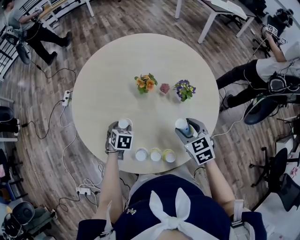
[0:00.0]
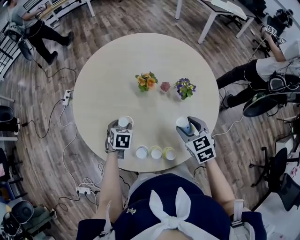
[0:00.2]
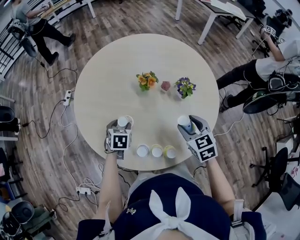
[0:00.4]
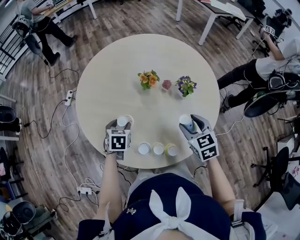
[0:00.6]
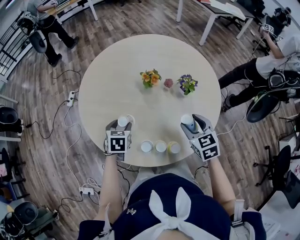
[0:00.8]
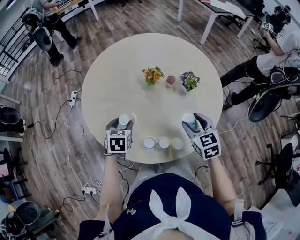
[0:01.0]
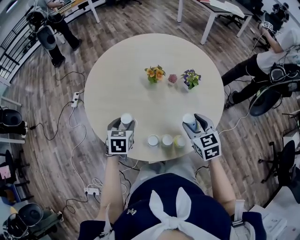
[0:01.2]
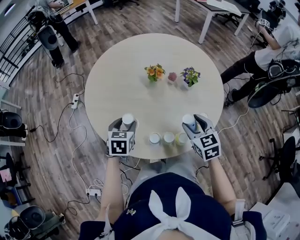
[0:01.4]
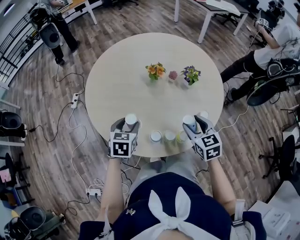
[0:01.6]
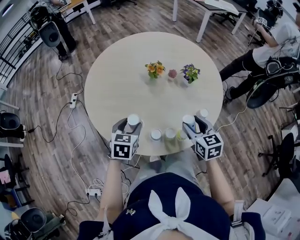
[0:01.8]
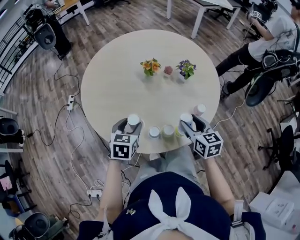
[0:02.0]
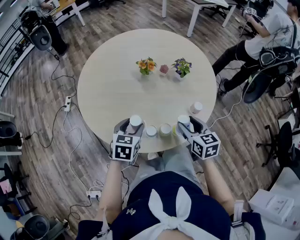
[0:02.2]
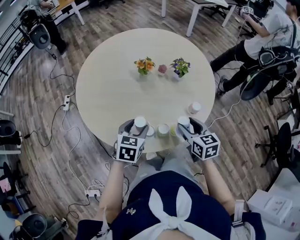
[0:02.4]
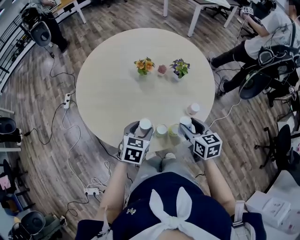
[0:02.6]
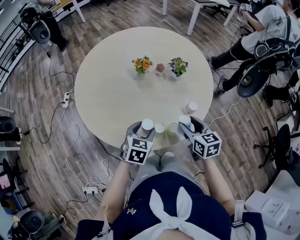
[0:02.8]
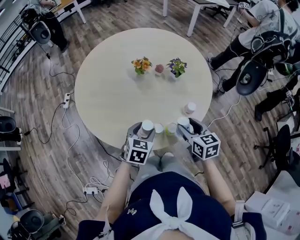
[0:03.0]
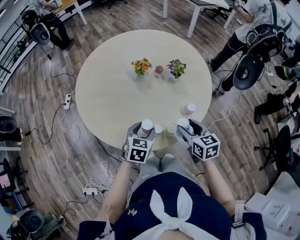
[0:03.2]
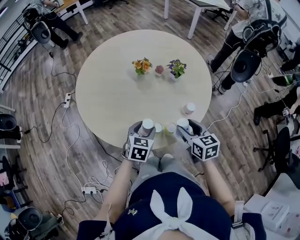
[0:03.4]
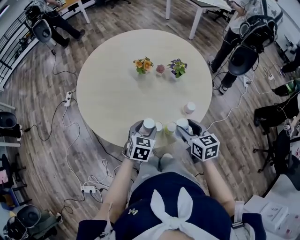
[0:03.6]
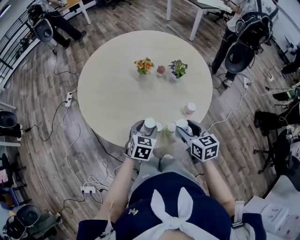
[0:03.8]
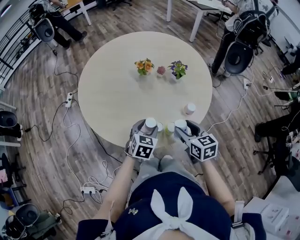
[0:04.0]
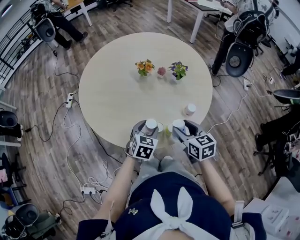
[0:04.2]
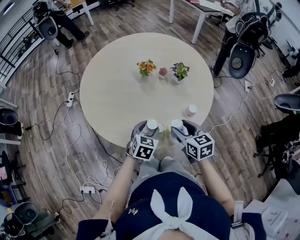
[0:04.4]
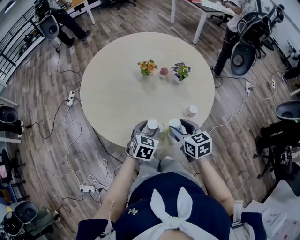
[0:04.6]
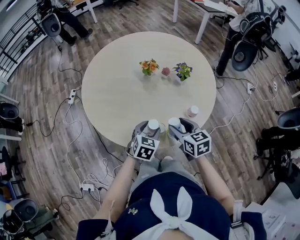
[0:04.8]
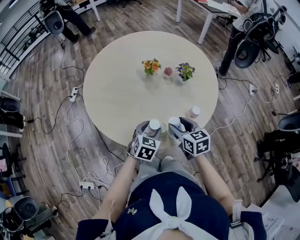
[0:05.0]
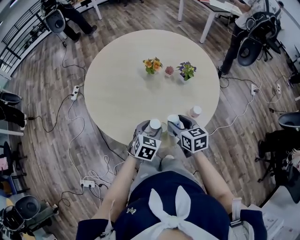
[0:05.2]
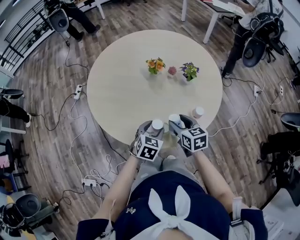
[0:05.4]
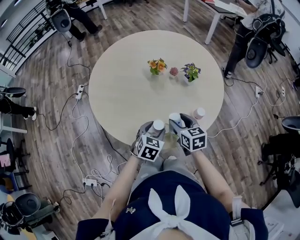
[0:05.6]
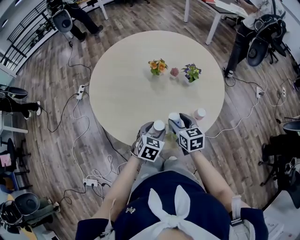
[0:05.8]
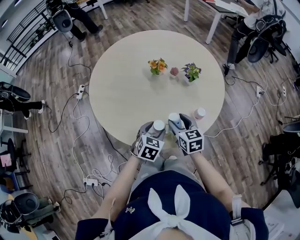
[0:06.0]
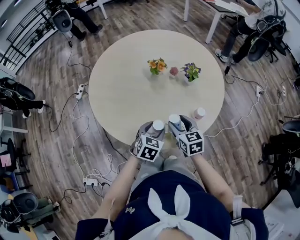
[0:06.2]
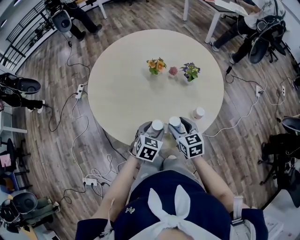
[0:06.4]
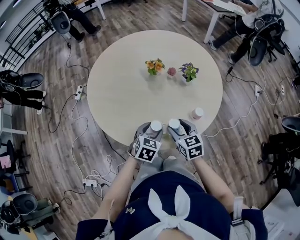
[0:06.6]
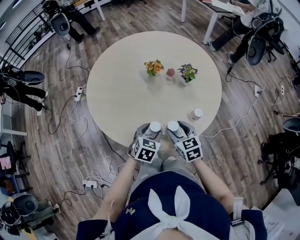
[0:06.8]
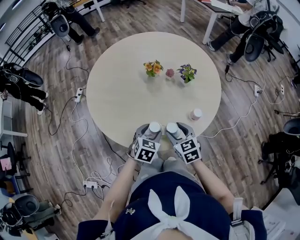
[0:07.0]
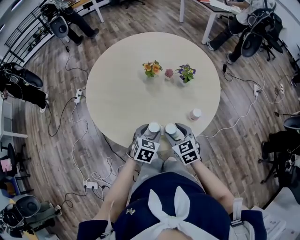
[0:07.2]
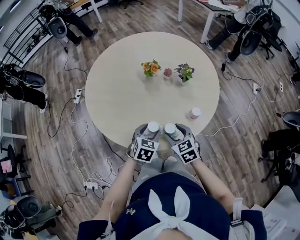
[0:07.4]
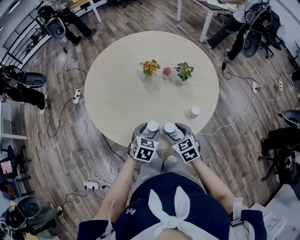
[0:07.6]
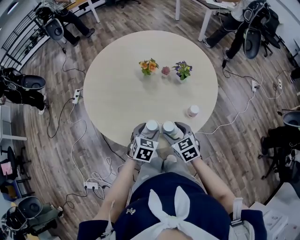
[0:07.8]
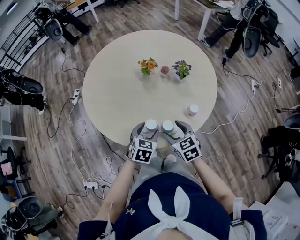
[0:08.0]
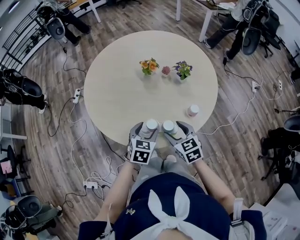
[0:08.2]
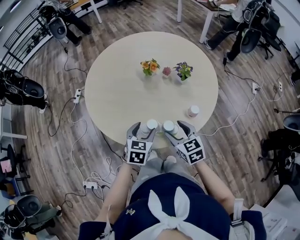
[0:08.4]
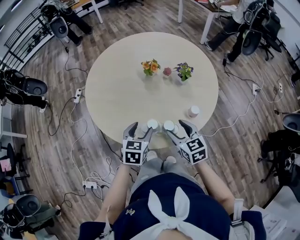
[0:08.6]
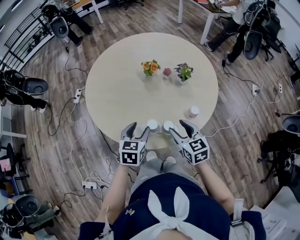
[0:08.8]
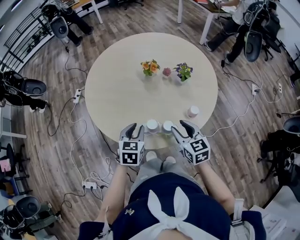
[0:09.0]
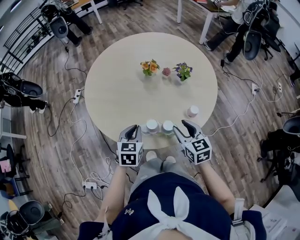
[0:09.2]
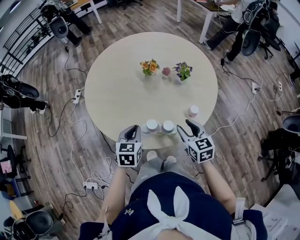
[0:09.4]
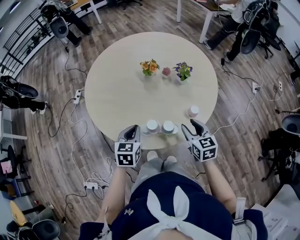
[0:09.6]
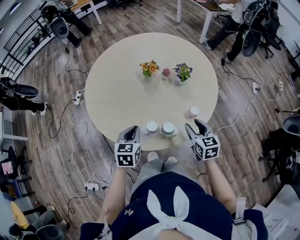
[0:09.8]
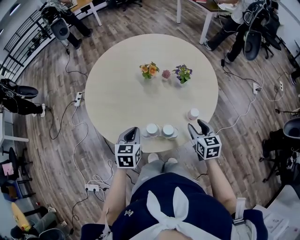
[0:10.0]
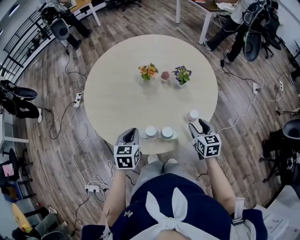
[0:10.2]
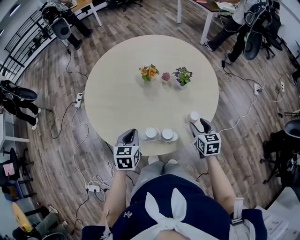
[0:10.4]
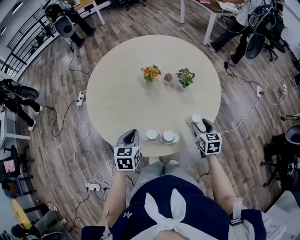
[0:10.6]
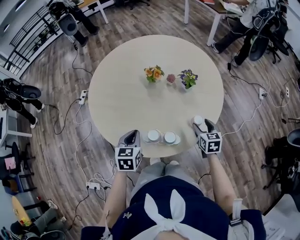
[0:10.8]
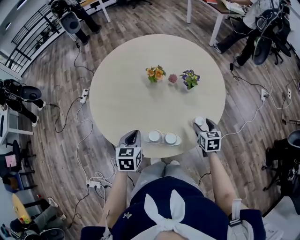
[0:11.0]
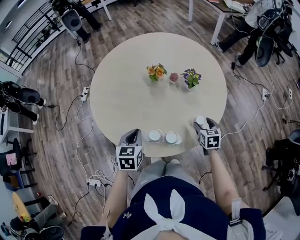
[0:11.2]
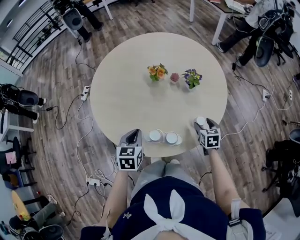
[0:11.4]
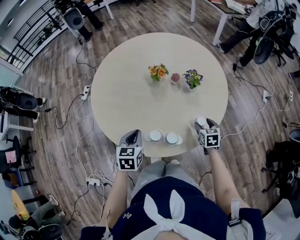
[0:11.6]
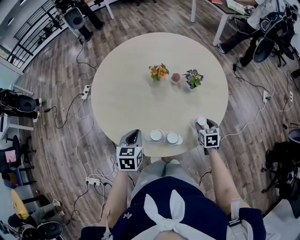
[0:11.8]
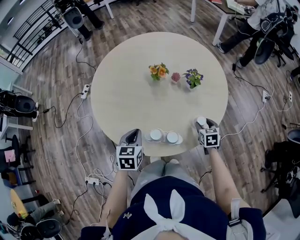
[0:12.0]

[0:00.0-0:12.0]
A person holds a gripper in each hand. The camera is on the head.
0:00.0 to 0:01.6: The left gripper shifts about 15 cm upward and backward; the right gripper is displaced backward by some 10 cm.
0:01.6 to 0:03.0: The right gripper changes place by about 5 cm. The left gripper moves to the right and backward, some 15 cm.
0:03.0 to 0:04.4: The grippers move only a little.
0:04.4 to 0:06.0: The right gripper heads forward, covering approximately 5 cm.
0:06.0 to 0:07.6: The right gripper heads backward, covering roughly 5 cm.
0:07.6 to 0:09.0: The right gripper is displaced upward by some 5 cm. The left gripper moves upward and to the left, roughly 10 cm, and closes.
0:09.0 to 0:10.4: The right gripper is displaced to the right and downward by about 15 cm.
0:10.4 to 0:12.0: The right gripper shifts approximately 10 cm downward.

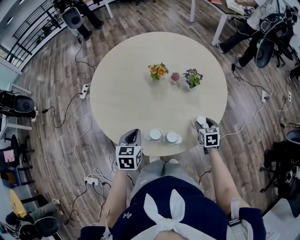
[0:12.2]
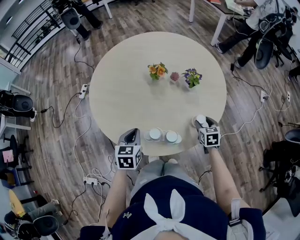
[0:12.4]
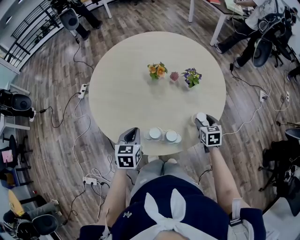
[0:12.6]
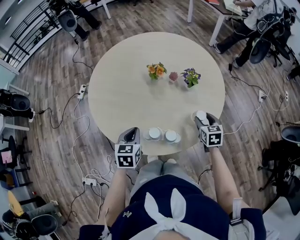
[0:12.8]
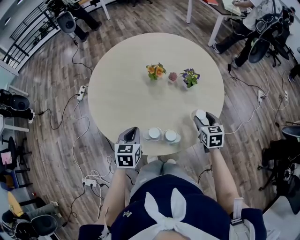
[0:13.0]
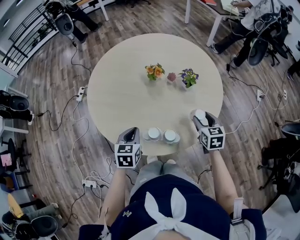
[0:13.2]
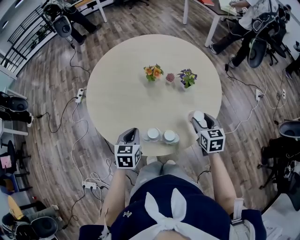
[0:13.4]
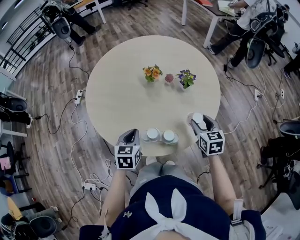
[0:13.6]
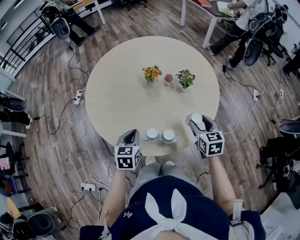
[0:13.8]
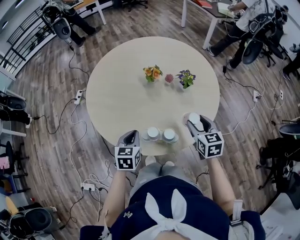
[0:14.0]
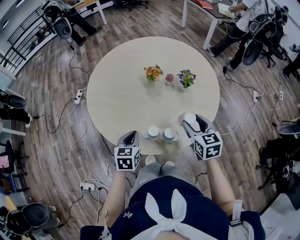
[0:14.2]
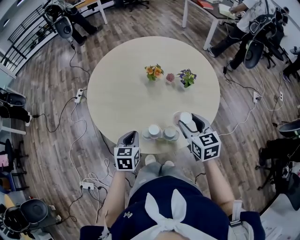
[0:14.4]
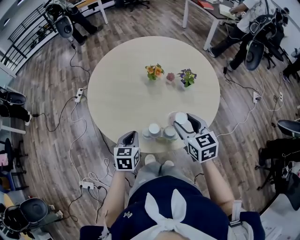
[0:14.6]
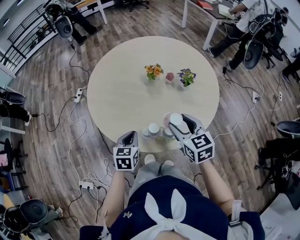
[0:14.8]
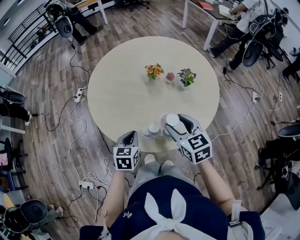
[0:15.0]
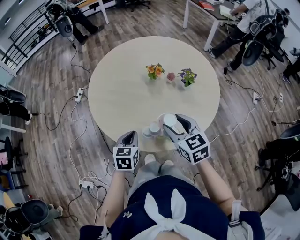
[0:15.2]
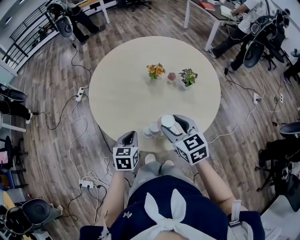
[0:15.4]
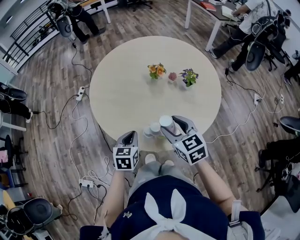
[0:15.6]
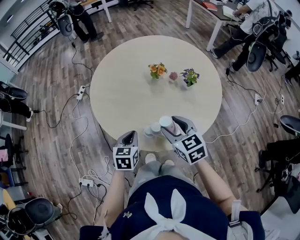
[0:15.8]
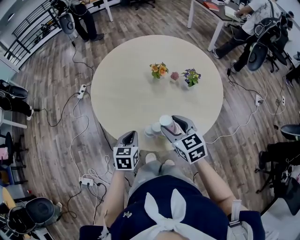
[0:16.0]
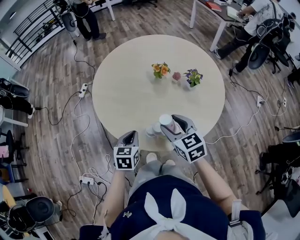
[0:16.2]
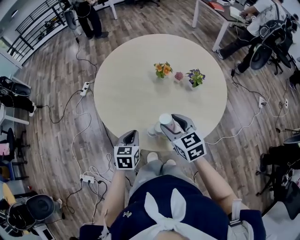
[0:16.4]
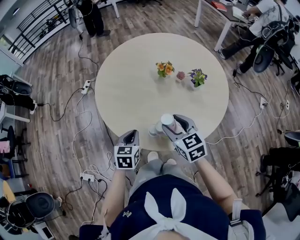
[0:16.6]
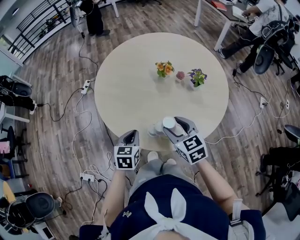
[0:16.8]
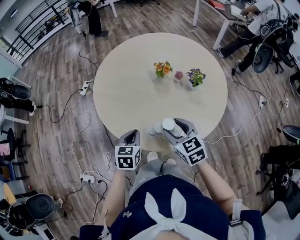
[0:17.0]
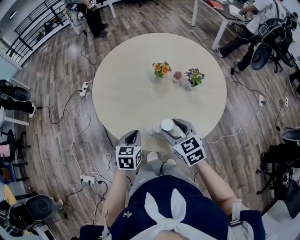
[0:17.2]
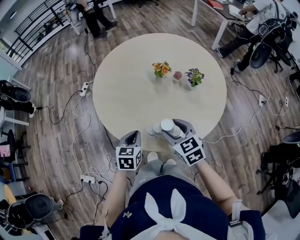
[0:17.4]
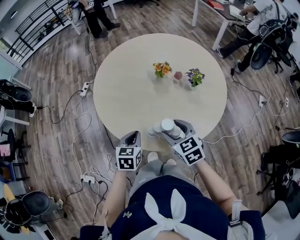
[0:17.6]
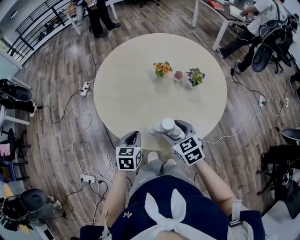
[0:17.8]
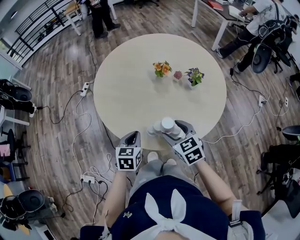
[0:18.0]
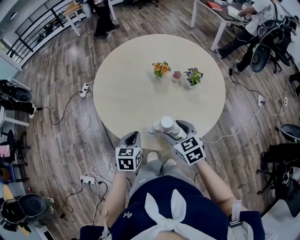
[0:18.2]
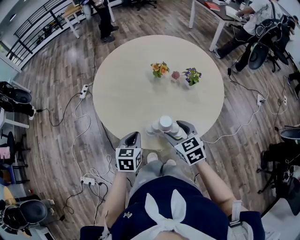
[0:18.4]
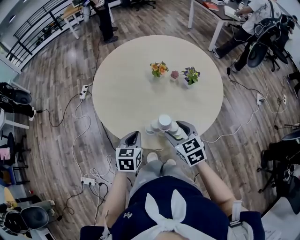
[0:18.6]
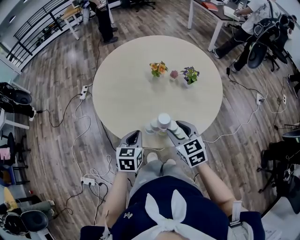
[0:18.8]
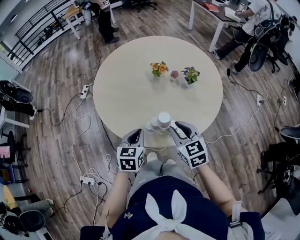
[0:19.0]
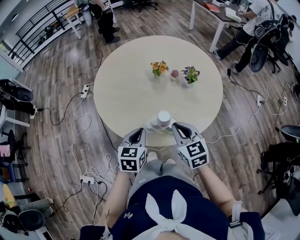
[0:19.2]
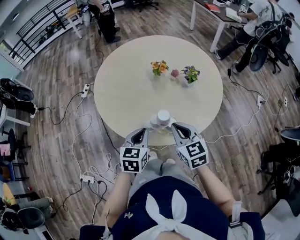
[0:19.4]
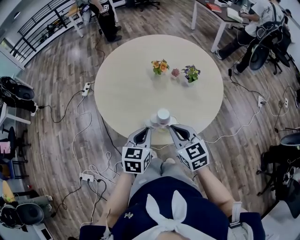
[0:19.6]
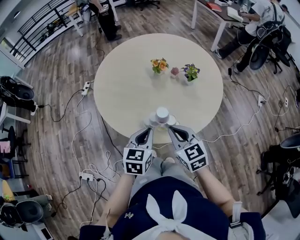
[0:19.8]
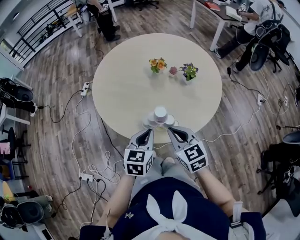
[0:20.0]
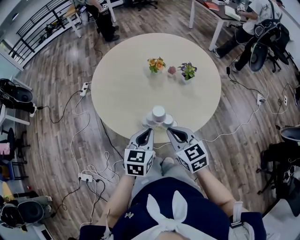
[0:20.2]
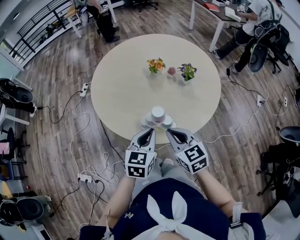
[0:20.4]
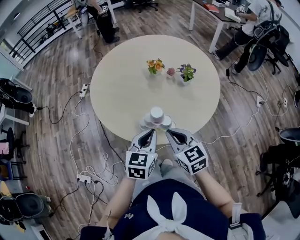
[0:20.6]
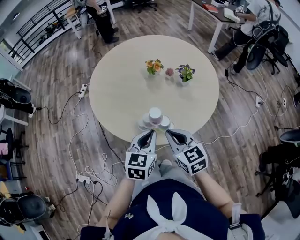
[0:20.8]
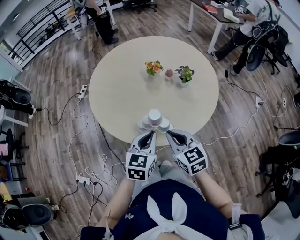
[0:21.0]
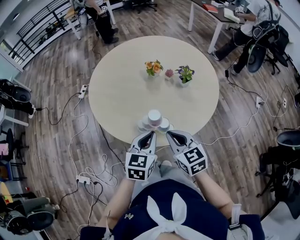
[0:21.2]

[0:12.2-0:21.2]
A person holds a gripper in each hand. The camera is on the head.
0:12.2 to 0:13.8: The right gripper goes approximately 15 cm upward.
0:13.8 to 0:15.2: The right gripper travels to the left and upward by approximately 15 cm, and changes its angle by roughly 20 degrees.
0:15.2 to 0:16.6: The grippers make only small movements.
0:16.6 to 0:18.2: There are only small adjustments of the grippers.
0:18.2 to 0:19.8: The left gripper goes roughly 10 cm to the right, upward and backward. Meanwhile the right gripper moves backward, approximately 5 cm, and closes.
0:19.8 to 0:21.2: The grippers stay close to where they were, moving slightly.

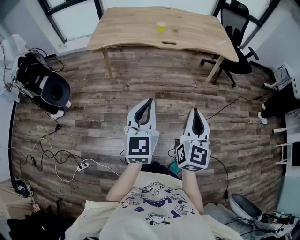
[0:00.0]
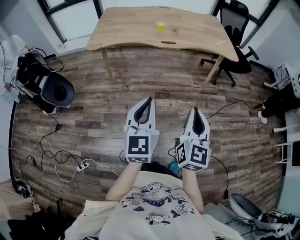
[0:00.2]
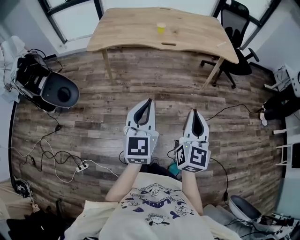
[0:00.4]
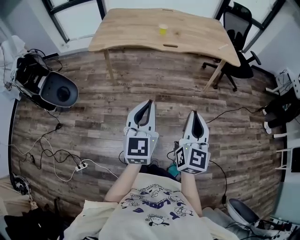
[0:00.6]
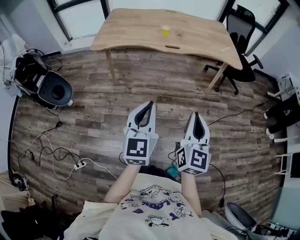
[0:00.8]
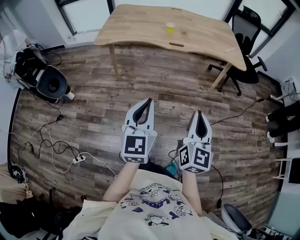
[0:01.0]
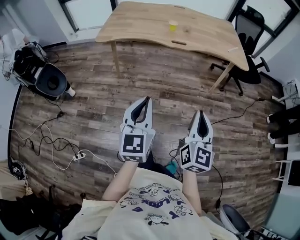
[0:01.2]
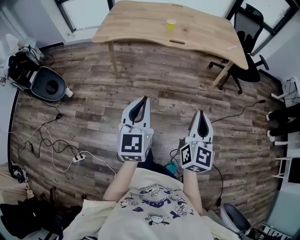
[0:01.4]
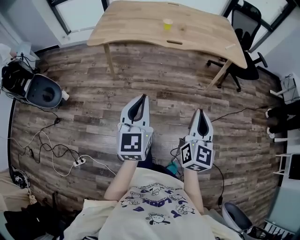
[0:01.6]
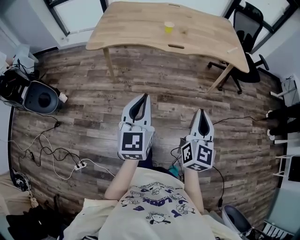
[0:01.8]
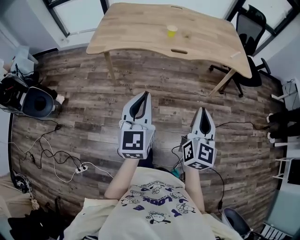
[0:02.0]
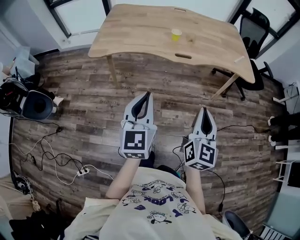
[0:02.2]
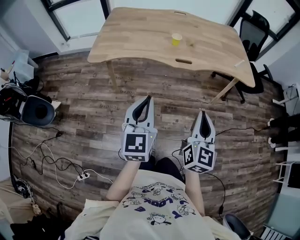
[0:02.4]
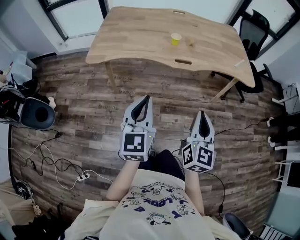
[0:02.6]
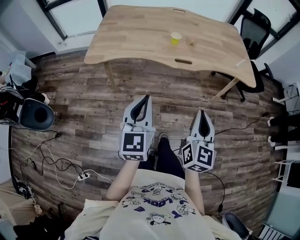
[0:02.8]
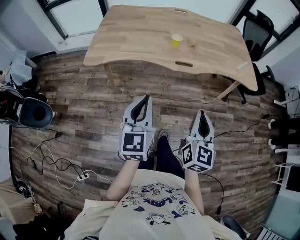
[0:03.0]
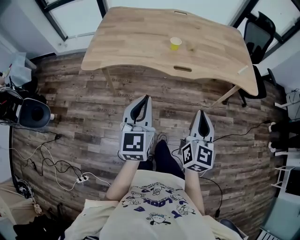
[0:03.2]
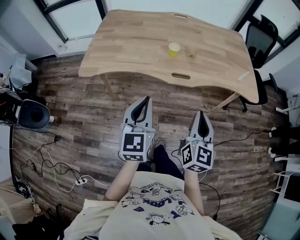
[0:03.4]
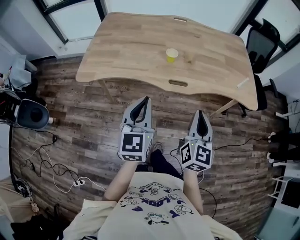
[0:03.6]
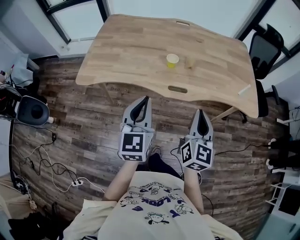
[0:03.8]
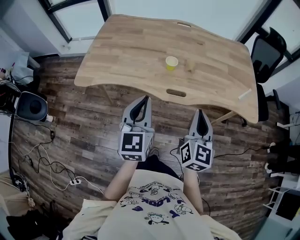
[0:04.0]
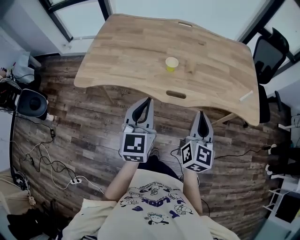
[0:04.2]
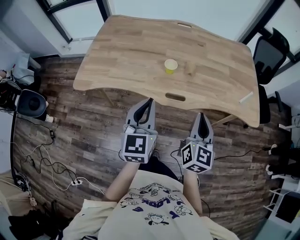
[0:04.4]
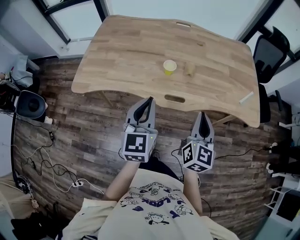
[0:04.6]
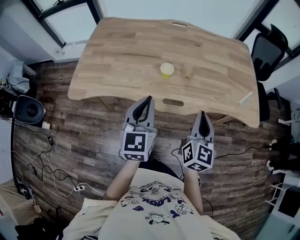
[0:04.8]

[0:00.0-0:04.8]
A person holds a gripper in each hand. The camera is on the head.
0:00.0 to 0:01.6: The two grippers go about 5 cm forward.
0:01.6 to 0:03.2: The two grippers go about 25 cm forward.
0:03.2 to 0:04.8: The grippers both shift forward by approximately 20 cm.
